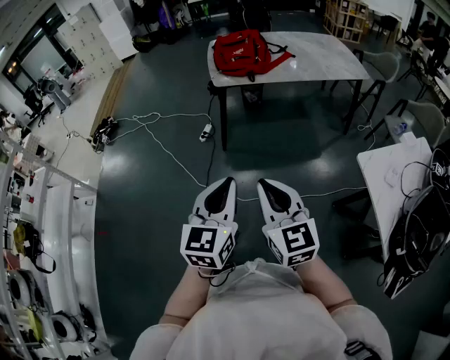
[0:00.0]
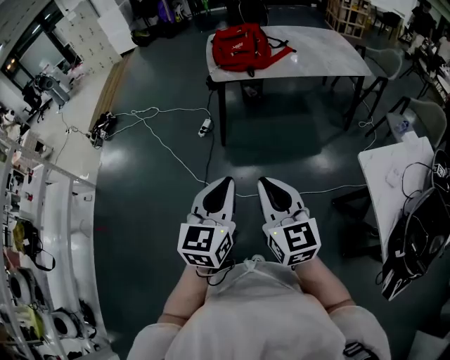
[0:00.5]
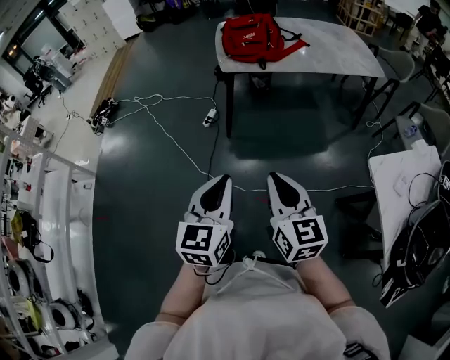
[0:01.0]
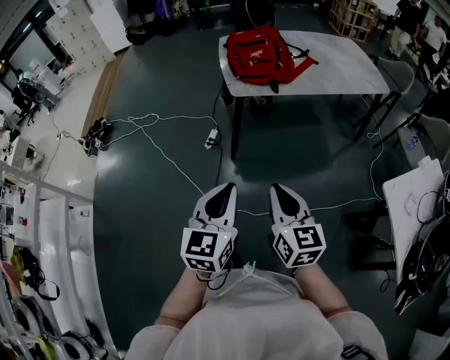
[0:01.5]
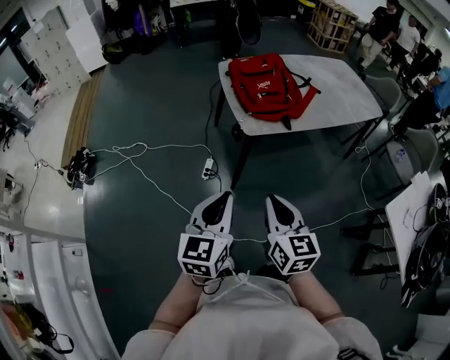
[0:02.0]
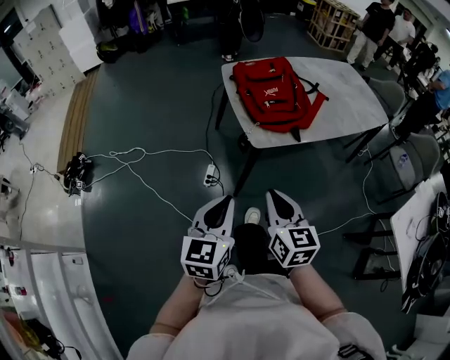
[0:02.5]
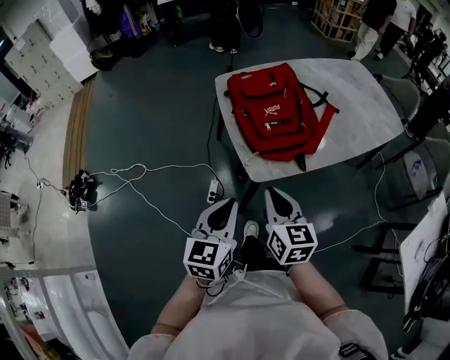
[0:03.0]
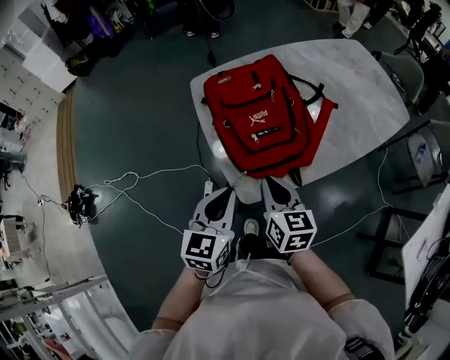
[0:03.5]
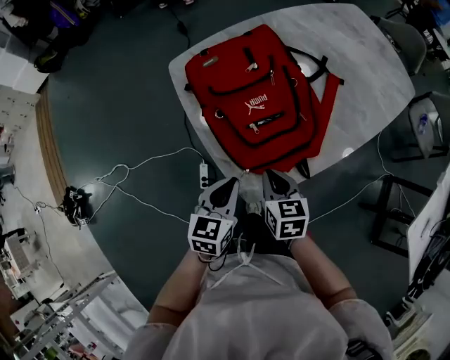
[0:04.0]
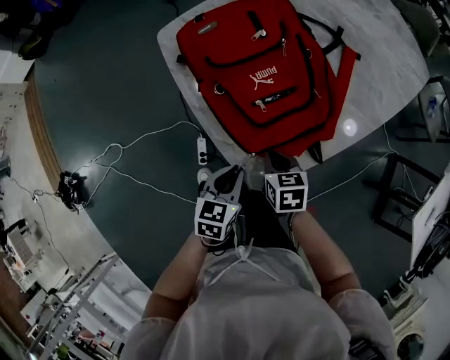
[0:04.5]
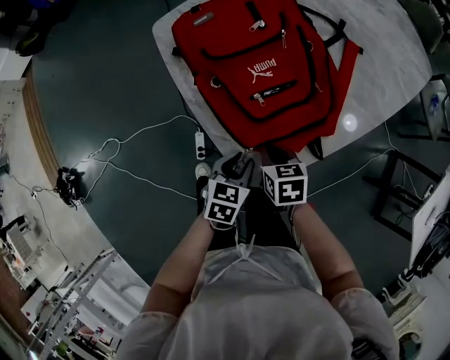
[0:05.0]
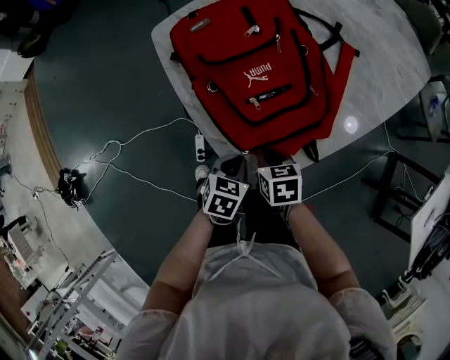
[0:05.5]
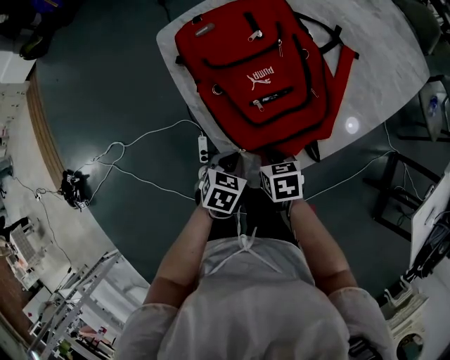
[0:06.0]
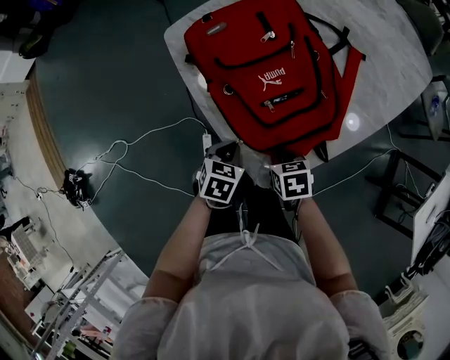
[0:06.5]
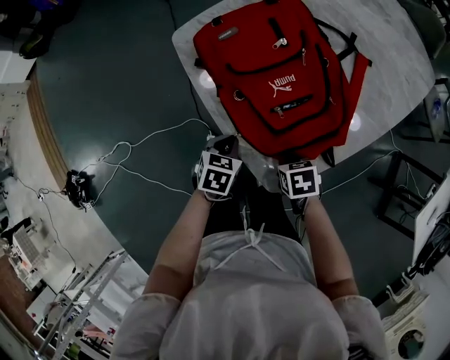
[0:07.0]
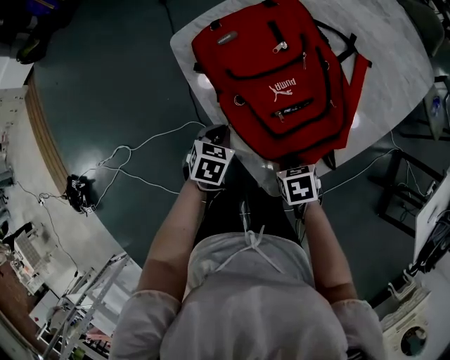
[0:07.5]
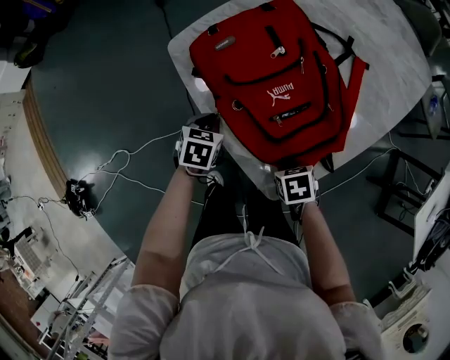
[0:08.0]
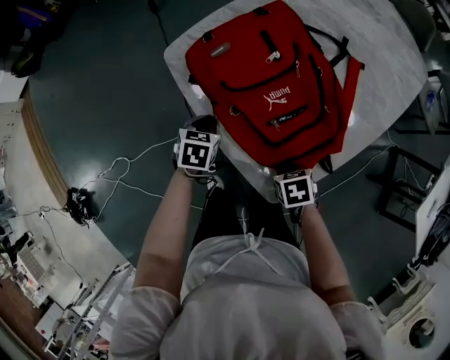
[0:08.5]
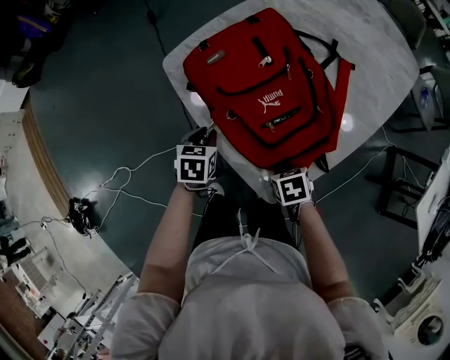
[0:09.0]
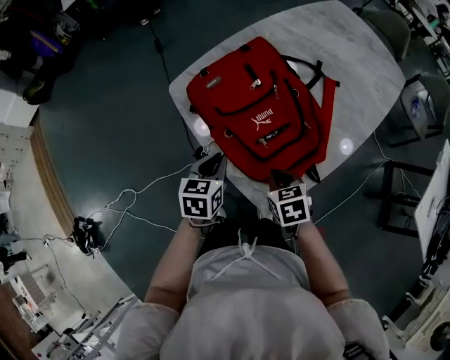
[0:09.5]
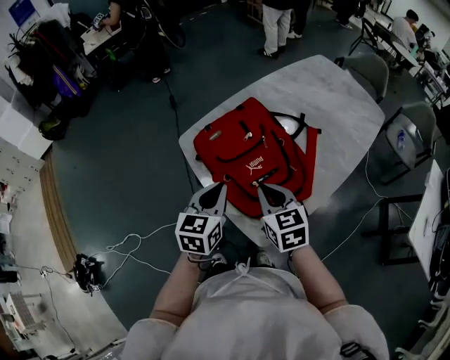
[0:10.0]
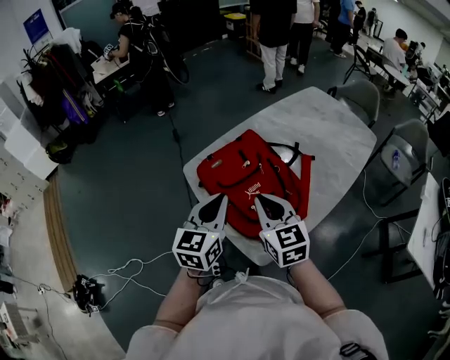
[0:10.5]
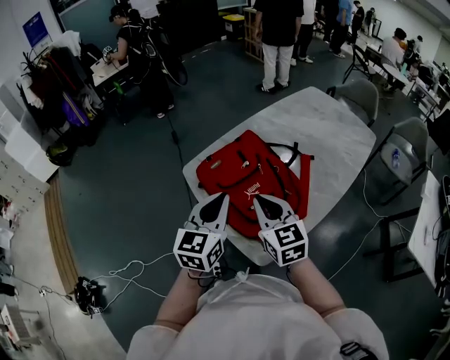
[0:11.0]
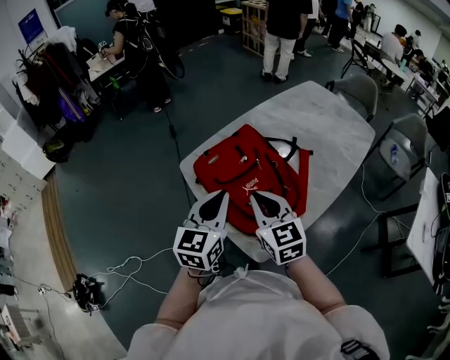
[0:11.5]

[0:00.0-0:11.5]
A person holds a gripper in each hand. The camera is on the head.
0.0 to 2.0 s: Both grippers are carried forward and to the left, some 40 cm. The right gripper rotates roughly 20 degrees.
2.0 to 4.0 s: Both grippers are carried forward, roughly 50 cm. The left gripper changes its angle by approximately 30 degrees. Meanwhile the right gripper swivels approximately 30 degrees.
4.0 to 6.0 s: The two grippers go about 15 cm downward. The left gripper changes its angle by about 30 degrees, and opens, then closes once more. Meanwhile the right gripper turns by some 20 degrees.
6.0 to 7.5 s: The left gripper heads forward and to the left, covering approximately 15 cm.
7.5 to 9.5 s: The two grippers go some 10 cm upward.
9.5 to 11.5 s: The two grippers go some 25 cm upward. The left gripper turns by roughly 30 degrees, while the right gripper points its fingers roughly 40 degrees further upward.

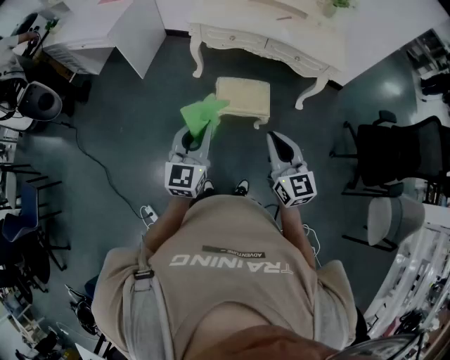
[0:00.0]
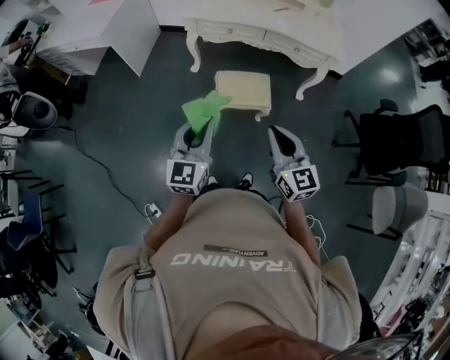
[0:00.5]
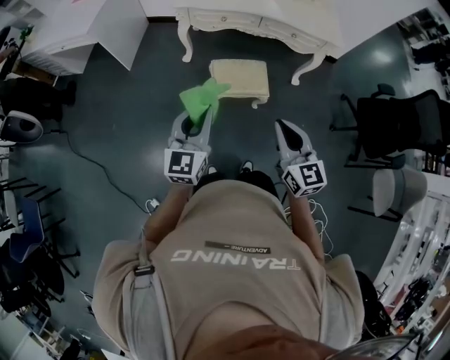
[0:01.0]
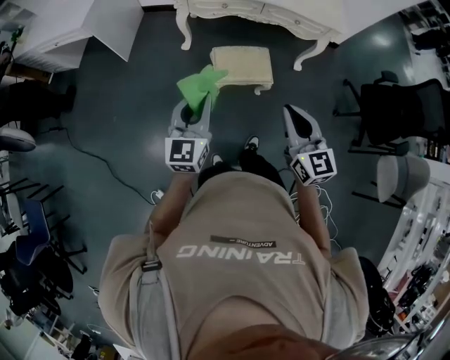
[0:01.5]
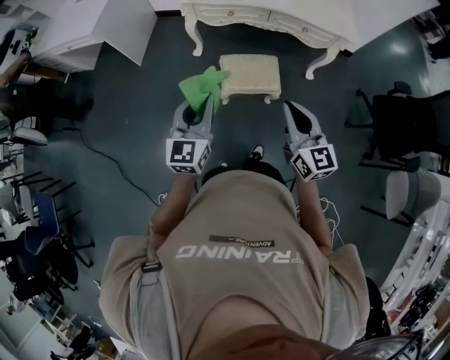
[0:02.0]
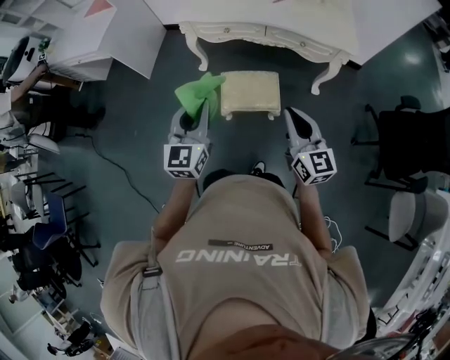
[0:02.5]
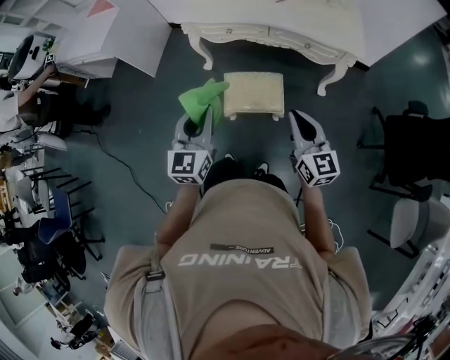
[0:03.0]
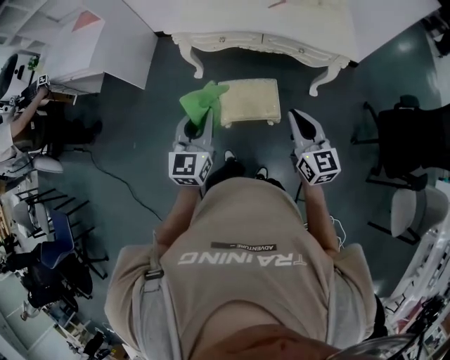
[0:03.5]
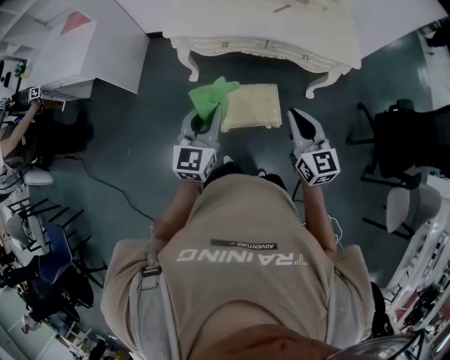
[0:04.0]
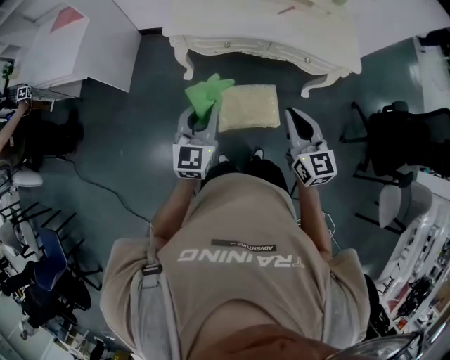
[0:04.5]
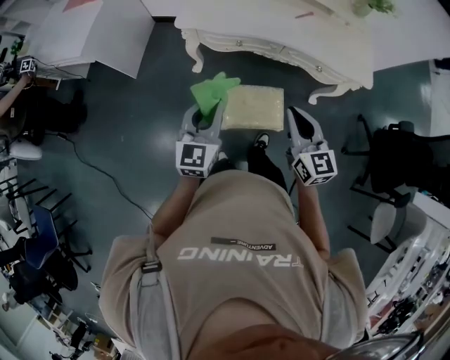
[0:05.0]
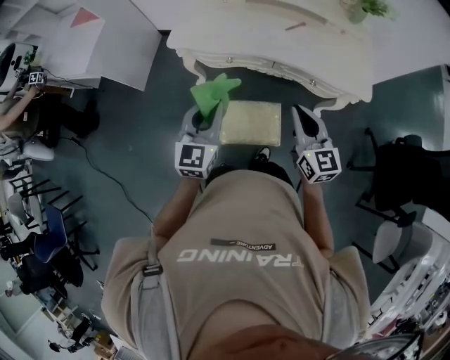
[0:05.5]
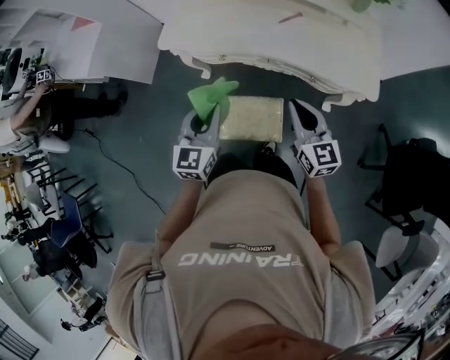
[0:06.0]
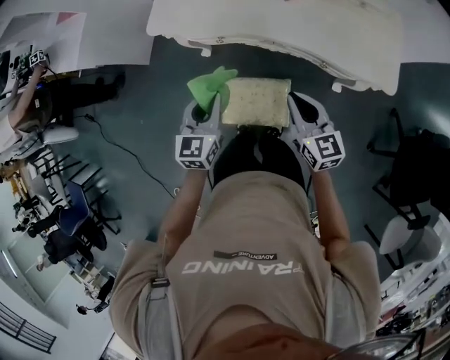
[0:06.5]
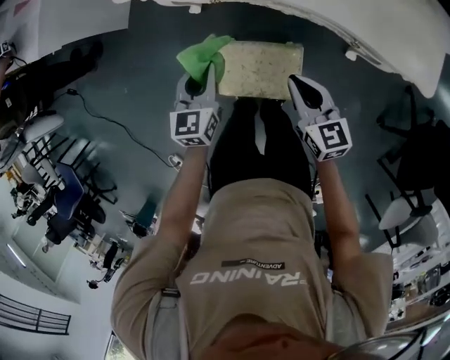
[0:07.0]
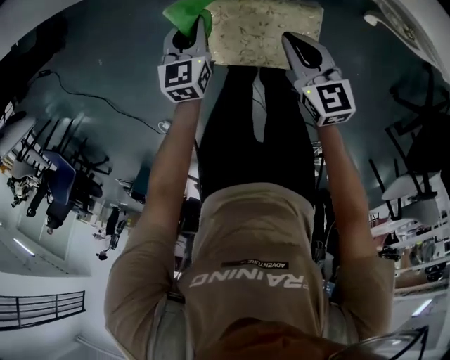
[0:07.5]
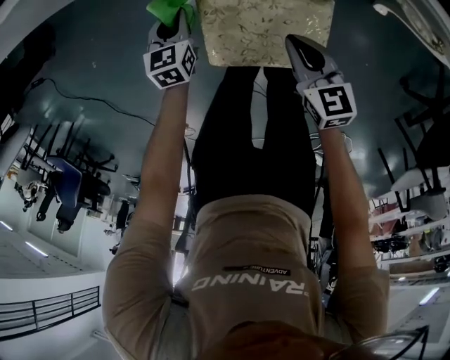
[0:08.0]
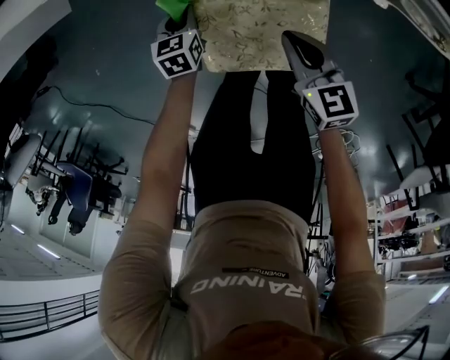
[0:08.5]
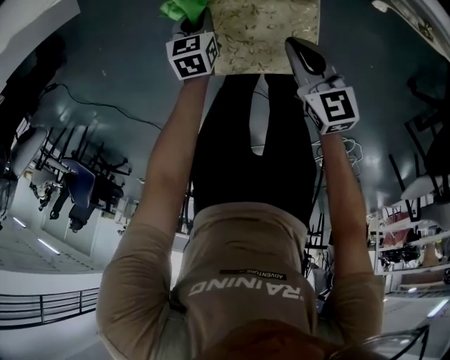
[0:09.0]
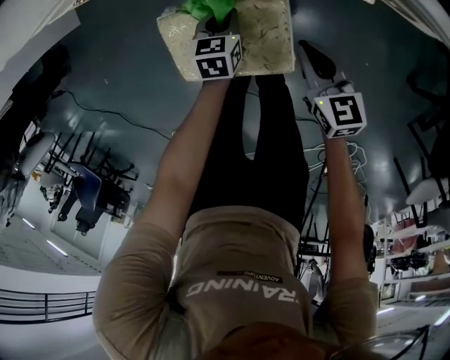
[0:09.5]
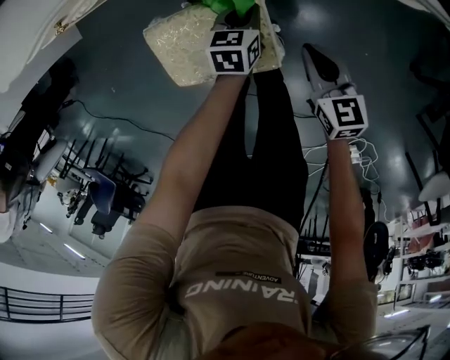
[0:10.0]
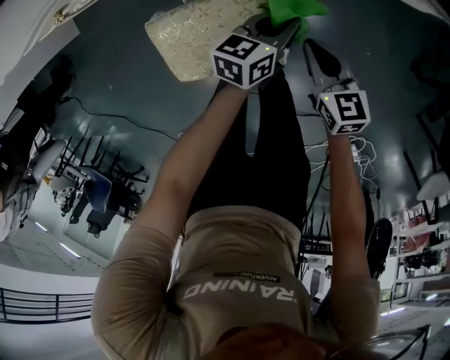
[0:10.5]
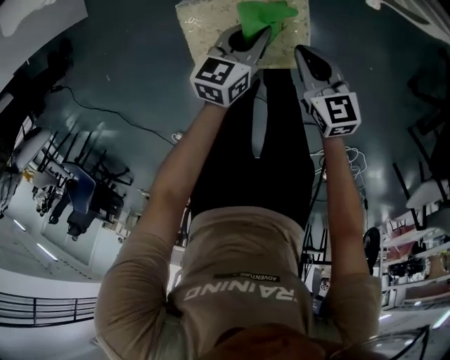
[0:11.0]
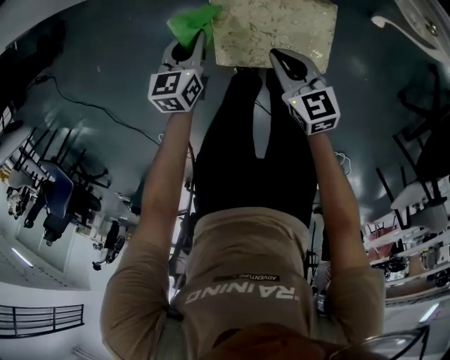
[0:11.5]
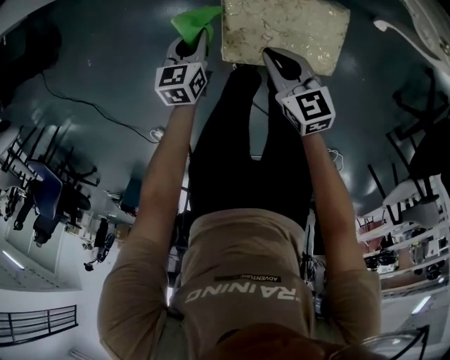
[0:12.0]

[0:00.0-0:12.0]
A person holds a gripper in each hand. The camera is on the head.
0.0 to 2.0 s: Both grippers travel together forward, approximately 10 cm.
2.0 to 4.0 s: The grippers both shift forward by some 20 cm.
4.0 to 6.0 s: The two grippers go roughly 25 cm forward and to the right.
6.0 to 8.0 s: The grippers both shift downward by about 60 cm. The right gripper rotates about 30 degrees. Meanwhile the left gripper points its fingers about 30 degrees further downward.
8.0 to 10.0 s: The right gripper travels to the right by about 25 cm, while the left gripper shifts roughly 40 cm to the right, and turns by about 20 degrees.
10.0 to 12.0 s: The right gripper ends up about 40 cm from where it was, and swivels roughly 20 degrees. Meanwhile the left gripper changes place by about 40 cm, and rotates roughly 20 degrees.

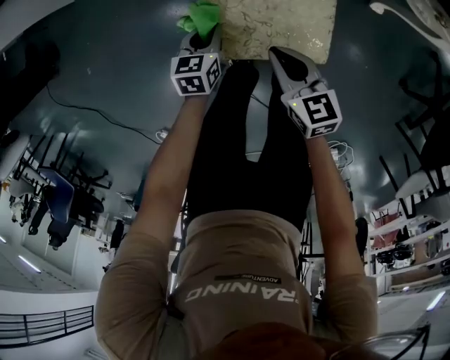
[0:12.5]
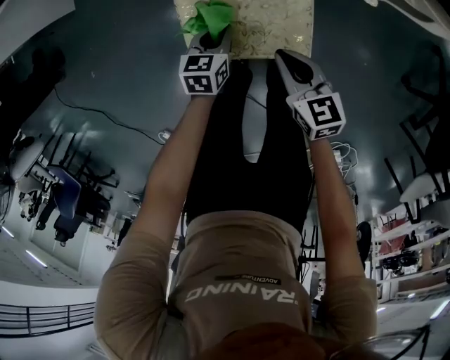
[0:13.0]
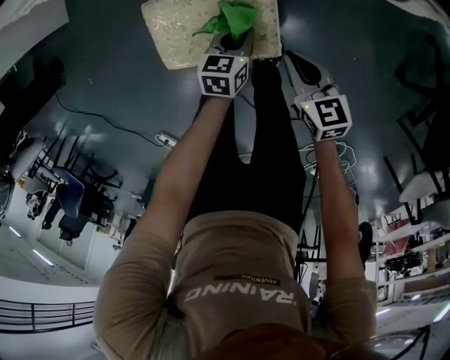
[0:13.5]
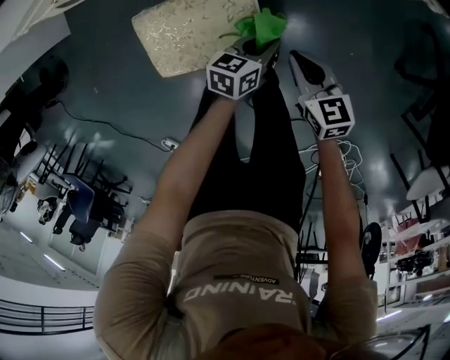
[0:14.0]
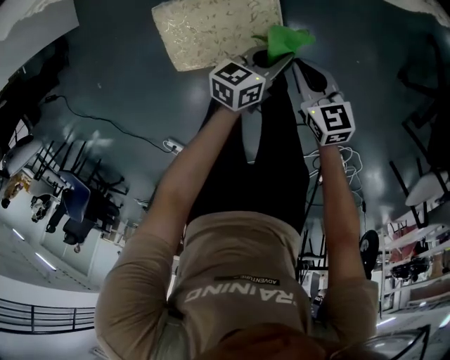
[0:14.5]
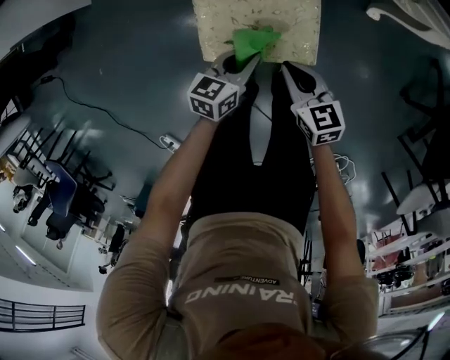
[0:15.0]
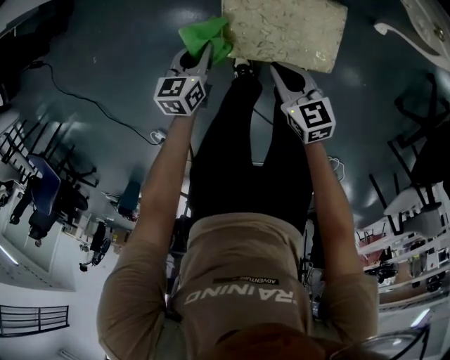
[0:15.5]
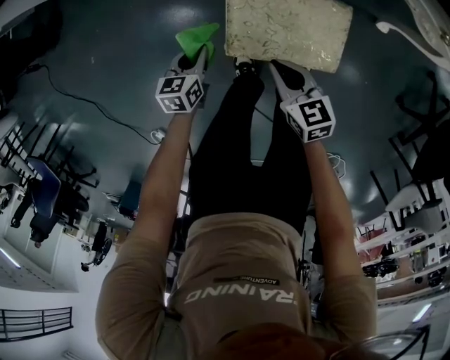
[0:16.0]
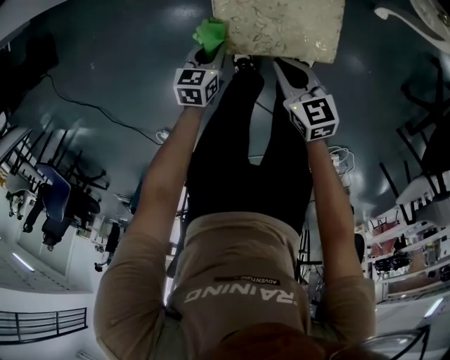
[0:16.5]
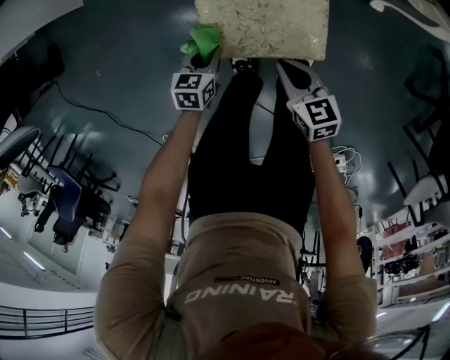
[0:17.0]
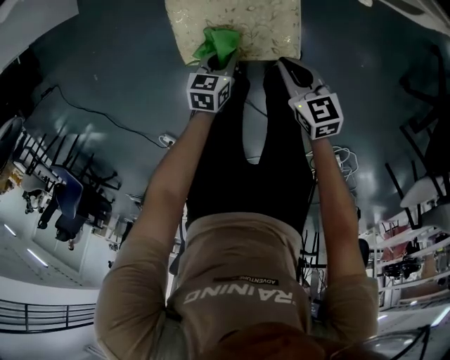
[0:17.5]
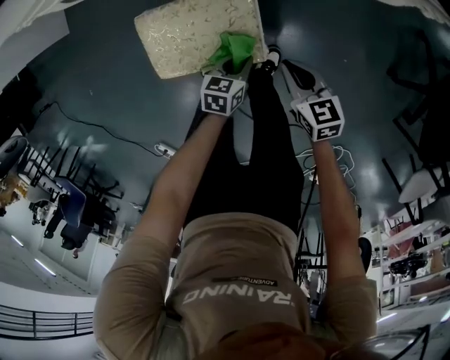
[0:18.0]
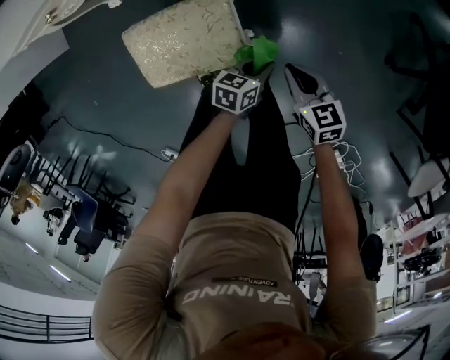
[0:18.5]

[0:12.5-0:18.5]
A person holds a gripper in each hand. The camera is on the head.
12.5 to 14.5 s: The left gripper heads to the right, covering roughly 35 cm, and changes its angle by approximately 40 degrees, while the right gripper shifts some 25 cm to the right.
14.5 to 16.5 s: The right gripper moves about 25 cm; the left gripper changes place by approximately 40 cm, and turns by some 30 degrees.
16.5 to 18.5 s: Both grippers move to the right, about 40 cm. The left gripper changes its angle by about 30 degrees.
